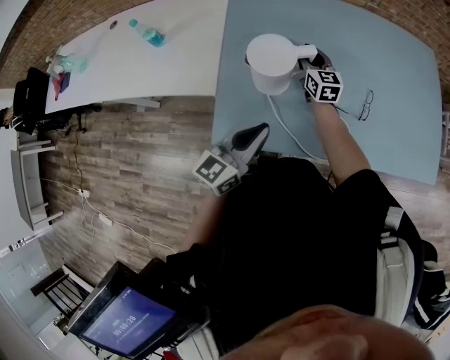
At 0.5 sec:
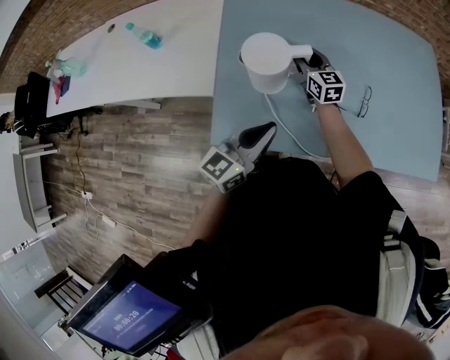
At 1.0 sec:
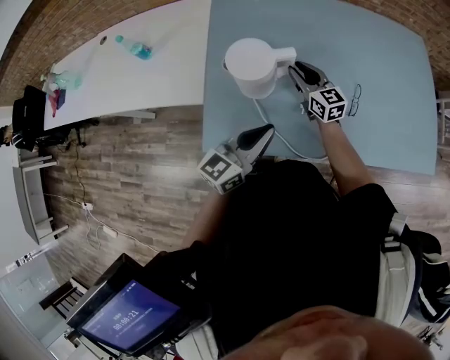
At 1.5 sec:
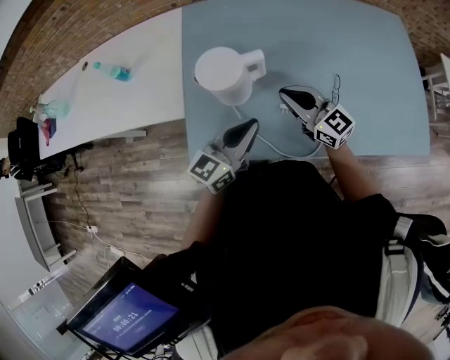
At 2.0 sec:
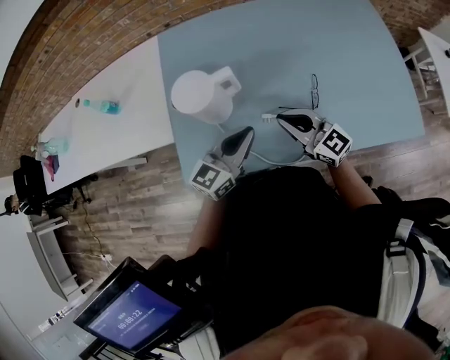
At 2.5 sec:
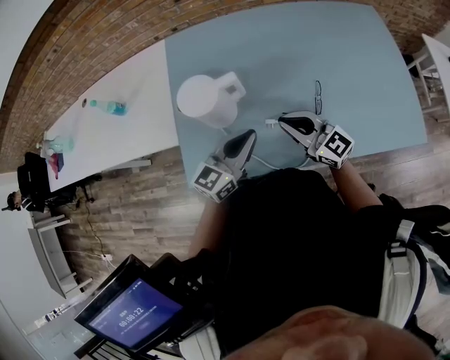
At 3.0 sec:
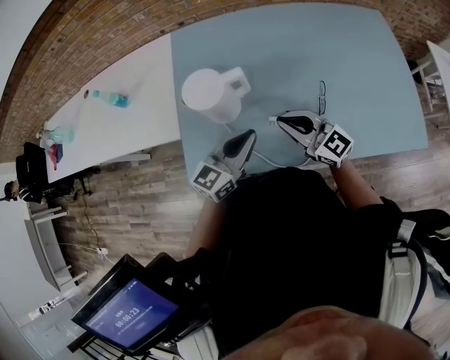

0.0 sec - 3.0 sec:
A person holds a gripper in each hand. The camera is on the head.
0.0 sec - 1.5 sec: The right gripper moves backward and upward, about 20 cm, changes its angle by approximately 30 degrees, and closes up, while the left gripper goes approximately 5 cm to the right.
1.5 sec - 3.0 sec: The right gripper travels backward by about 5 cm.

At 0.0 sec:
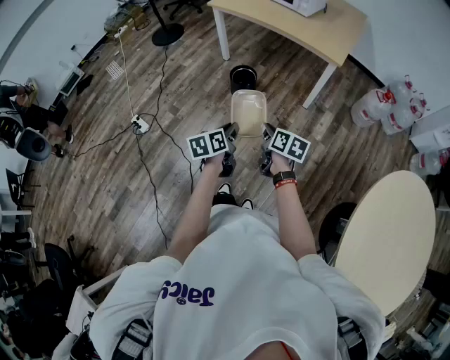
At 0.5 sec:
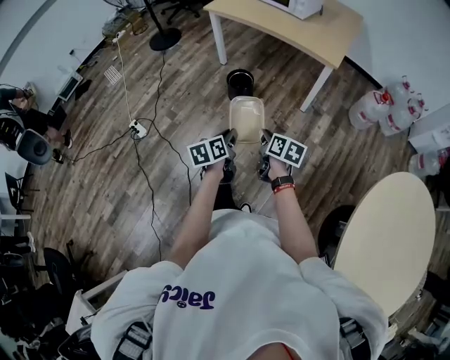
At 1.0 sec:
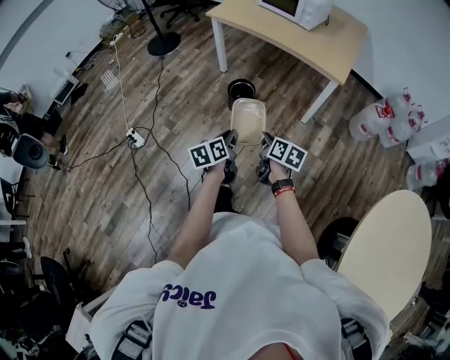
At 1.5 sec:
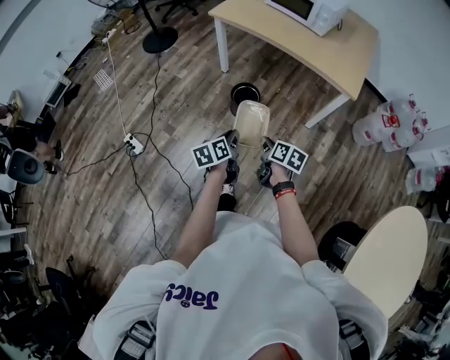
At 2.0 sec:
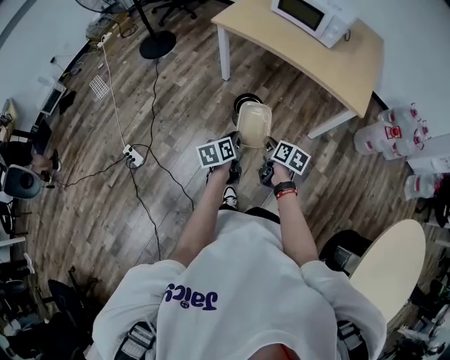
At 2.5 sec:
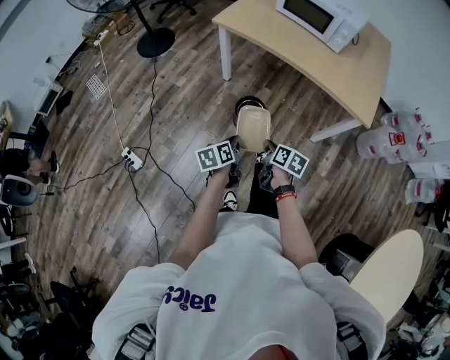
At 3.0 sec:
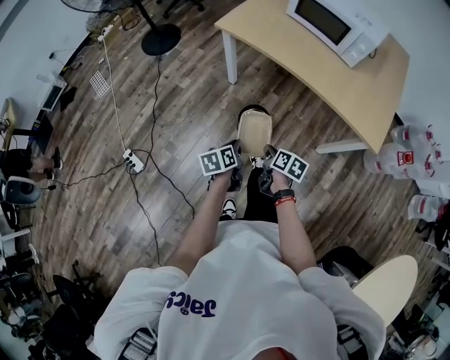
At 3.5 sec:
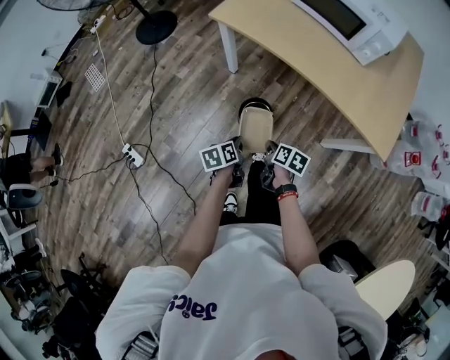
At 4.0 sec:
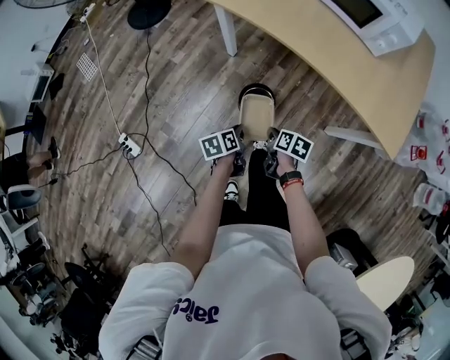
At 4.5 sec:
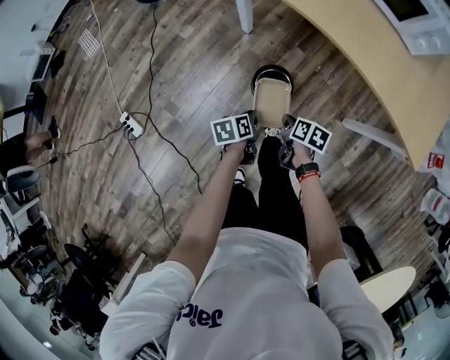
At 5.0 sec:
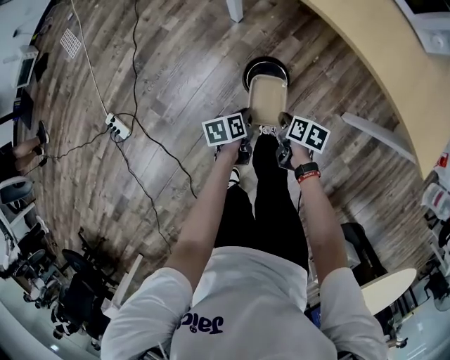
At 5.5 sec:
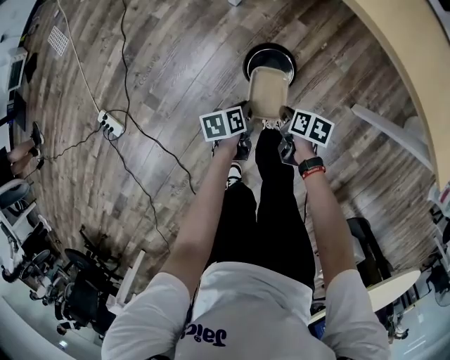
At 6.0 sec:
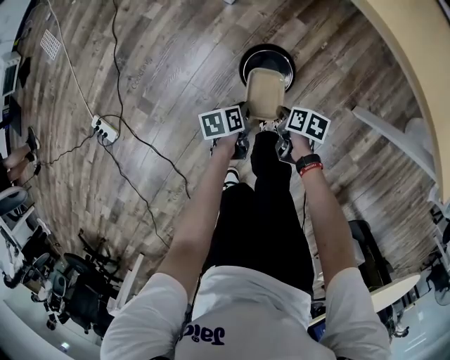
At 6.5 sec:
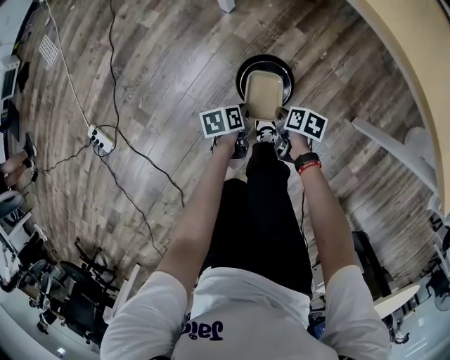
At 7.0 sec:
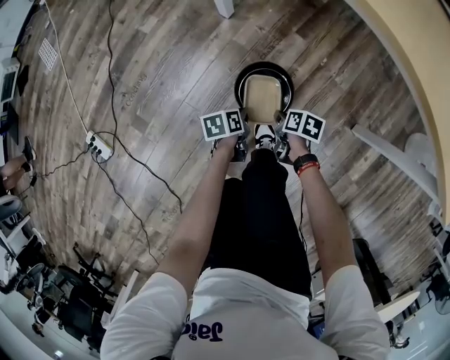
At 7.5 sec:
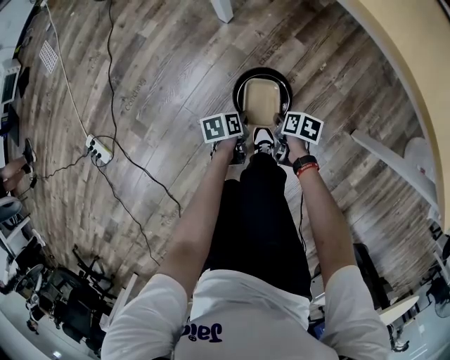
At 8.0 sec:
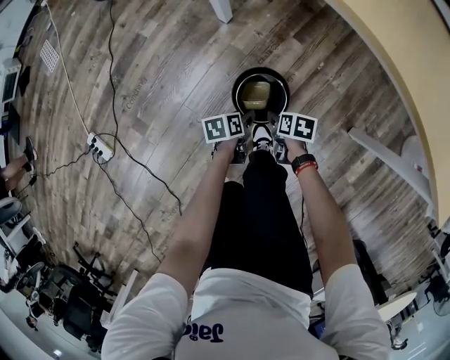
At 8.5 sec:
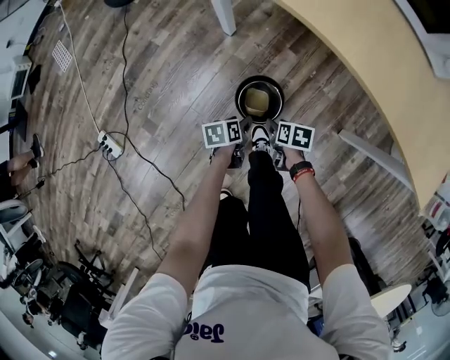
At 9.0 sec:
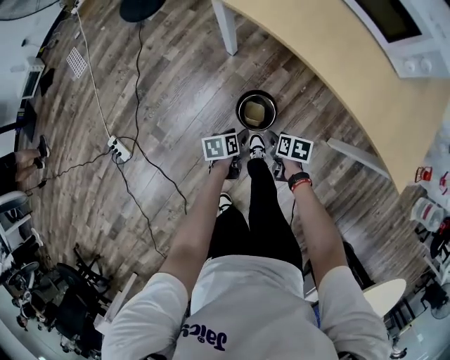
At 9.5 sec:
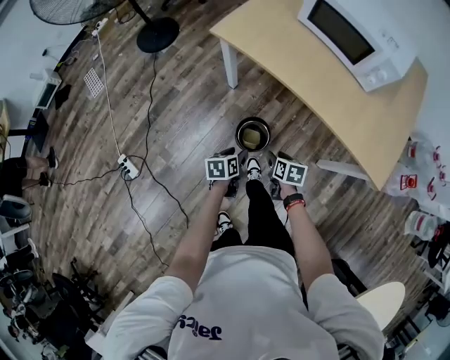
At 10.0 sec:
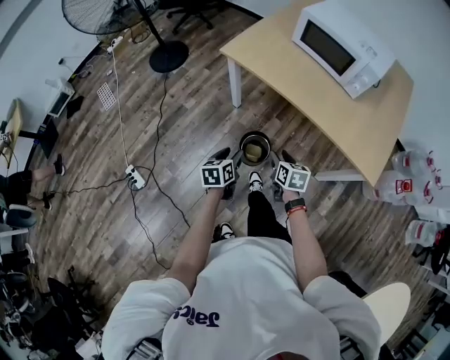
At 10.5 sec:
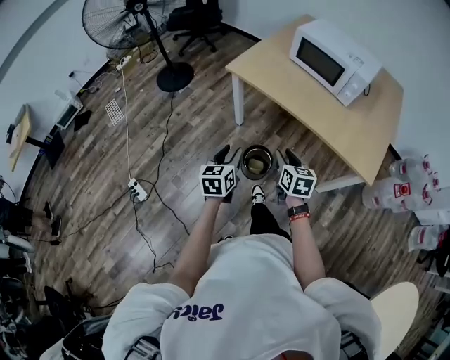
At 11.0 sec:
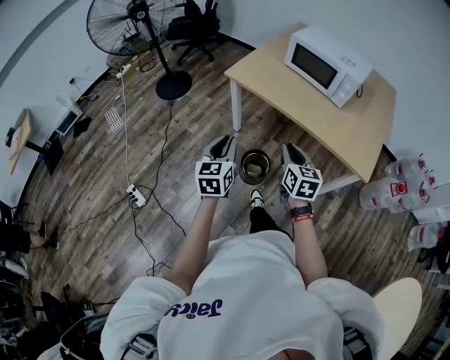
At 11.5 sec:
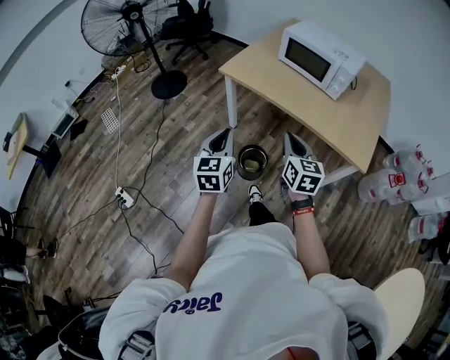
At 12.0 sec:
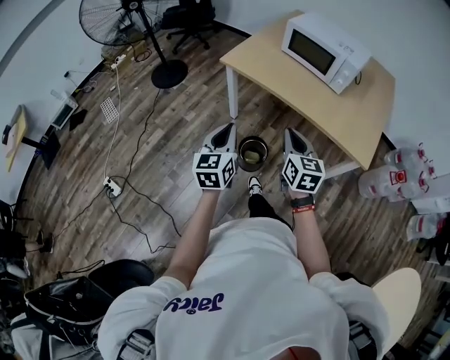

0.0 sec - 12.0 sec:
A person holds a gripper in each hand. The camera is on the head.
0.0 sec - 2.0 sec: The two grippers go about 35 cm forward.
2.0 sec - 4.0 sec: The grippers both shift forward and downward by roughly 40 cm. The right gripper turns by some 20 degrees, while the left gripper turns by roughly 20 degrees.
4.0 sec - 6.0 sec: The two grippers go some 40 cm downward.
6.0 sec - 8.0 sec: The right gripper goes some 10 cm forward and downward, and opens its fingers, while the left gripper goes roughly 10 cm downward and forward, and opens up.
8.0 sec - 10.0 sec: Both grippers move upward, some 60 cm. The right gripper rotates about 30 degrees; the left gripper changes its angle by some 30 degrees.
10.0 sec - 12.0 sec: The two grippers go roughly 25 cm upward and backward. The right gripper rotates roughly 30 degrees, and closes its fingers; the left gripper rotates some 30 degrees, and closes up.

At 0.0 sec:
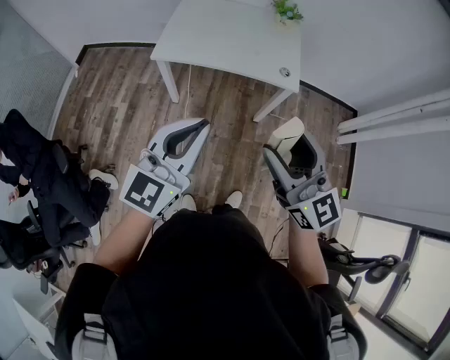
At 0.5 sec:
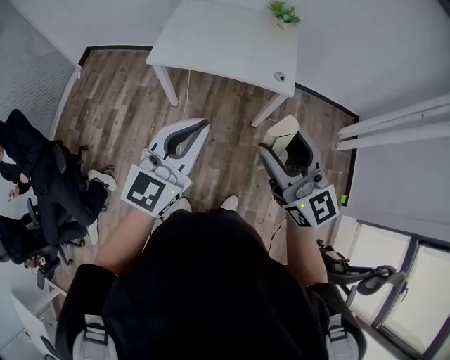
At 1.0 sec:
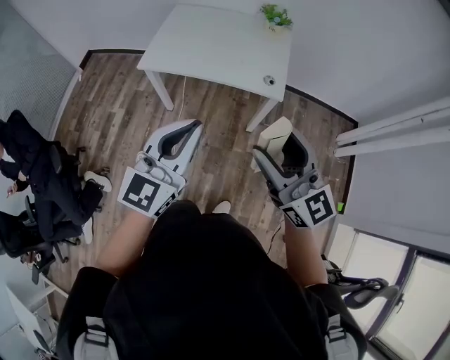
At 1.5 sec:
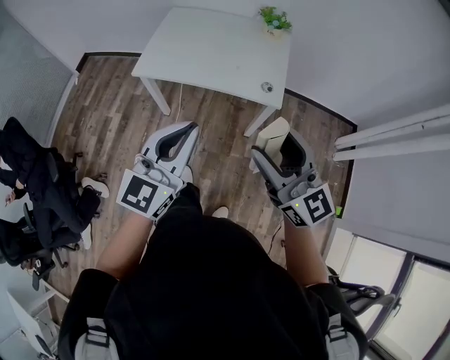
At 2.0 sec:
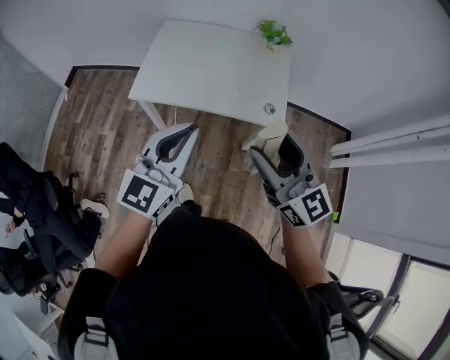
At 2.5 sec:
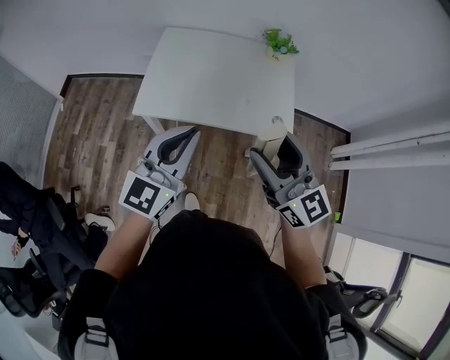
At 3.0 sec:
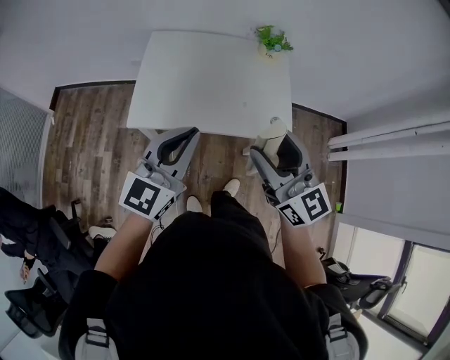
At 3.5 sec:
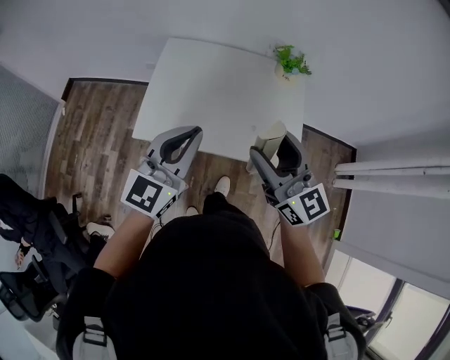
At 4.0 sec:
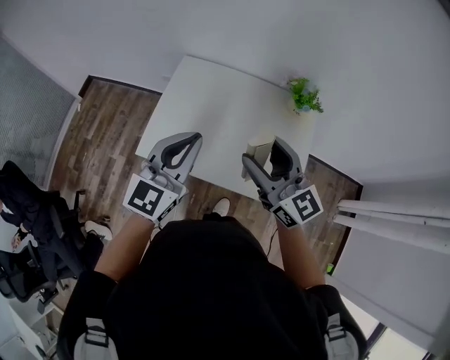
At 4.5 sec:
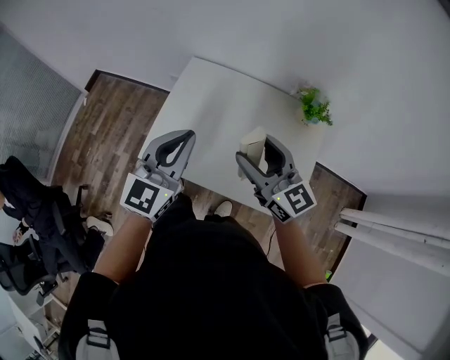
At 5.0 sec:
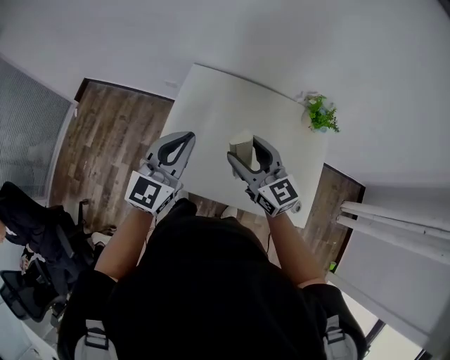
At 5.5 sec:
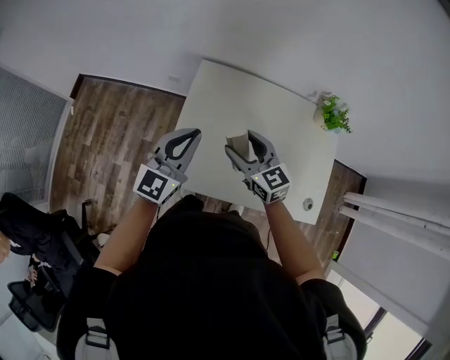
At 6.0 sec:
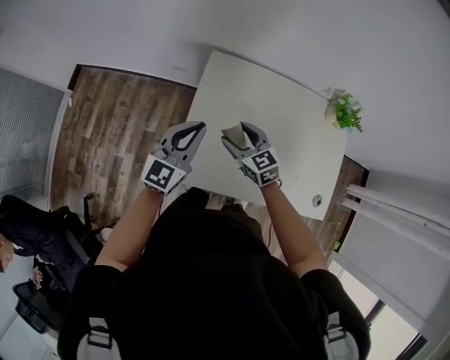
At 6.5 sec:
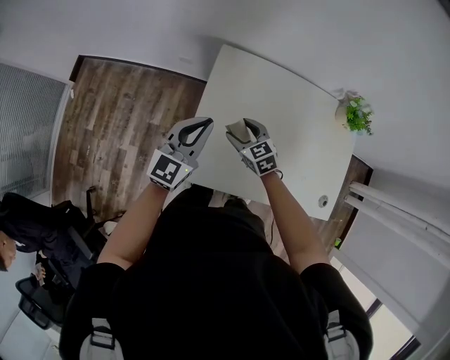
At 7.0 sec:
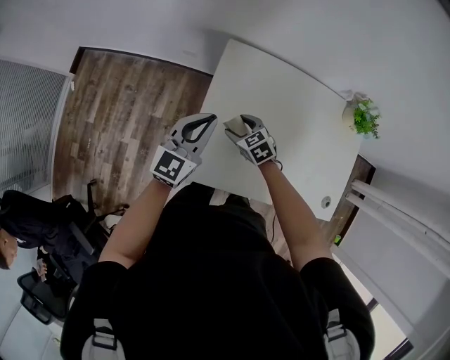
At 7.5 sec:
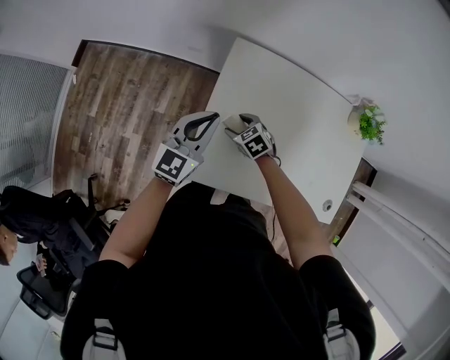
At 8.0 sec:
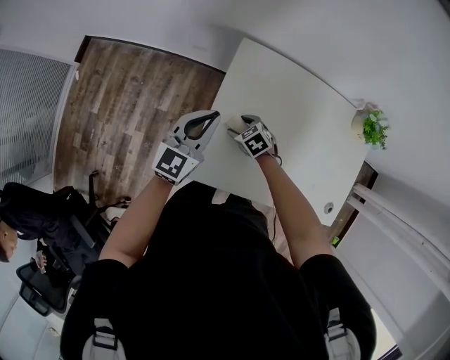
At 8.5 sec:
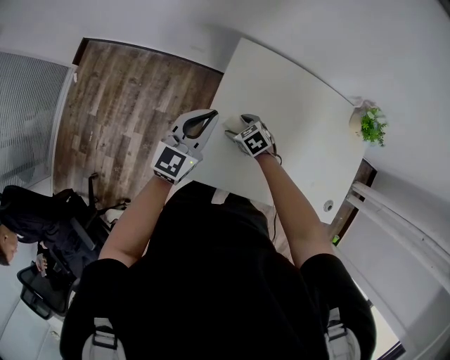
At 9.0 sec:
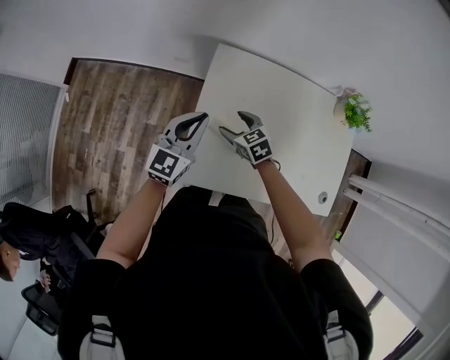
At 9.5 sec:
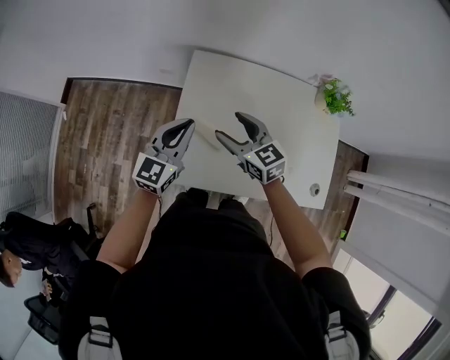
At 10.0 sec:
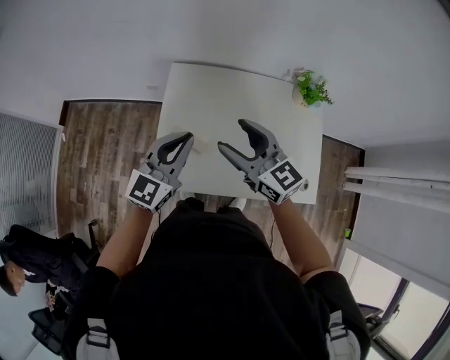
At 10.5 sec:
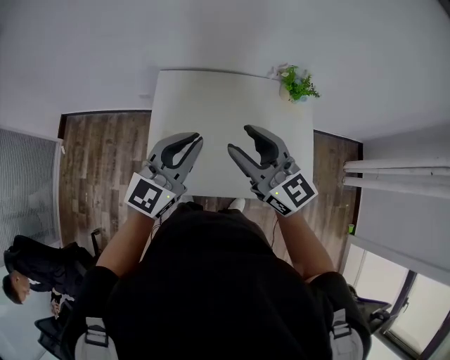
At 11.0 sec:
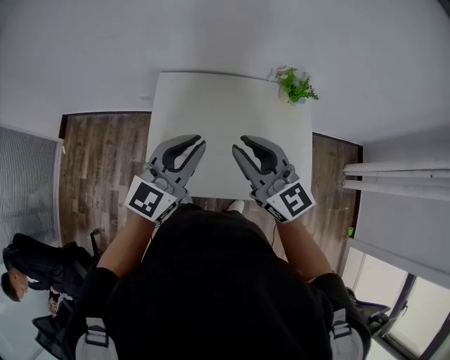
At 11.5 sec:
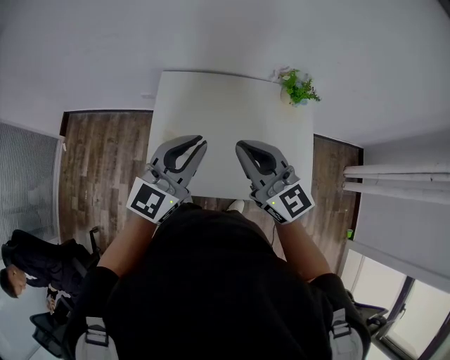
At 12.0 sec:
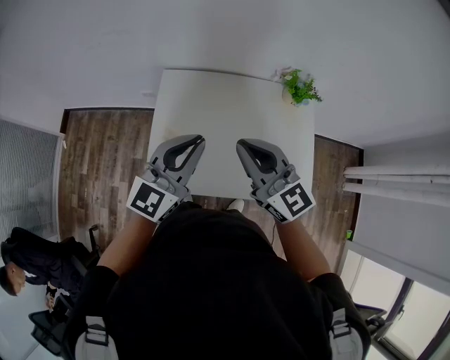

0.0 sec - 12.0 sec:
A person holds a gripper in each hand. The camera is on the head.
0.0 sec - 2.0 sec: The two grippers go roughly 20 cm forward.
2.0 sec - 4.0 sec: Both grippers travel together forward, about 35 cm.
4.0 sec - 6.0 sec: The left gripper shifts some 35 cm forward, to the left and downward; the right gripper heads downward, to the left and forward, covering some 40 cm, and points its fingers about 30 degrees further downward.
6.0 sec - 8.0 sec: The left gripper goes some 10 cm forward and downward. Meanwhile the right gripper travels downward by roughly 20 cm, and points its fingers approximately 30 degrees further downward.
8.0 sec - 10.0 sec: The right gripper heads upward, covering about 40 cm, and points its fingers about 60 degrees further upward, while the left gripper travels upward, to the right and backward by approximately 25 cm.
10.0 sec - 12.0 sec: The right gripper is displaced upward and to the right by some 10 cm, and closes; the left gripper moves to the right and upward, about 10 cm.
